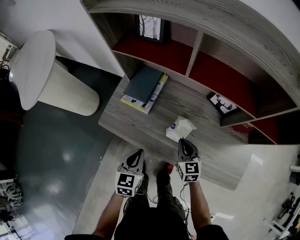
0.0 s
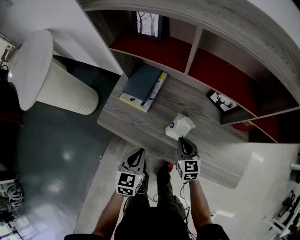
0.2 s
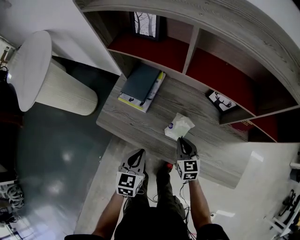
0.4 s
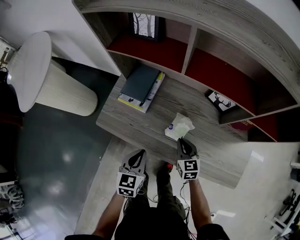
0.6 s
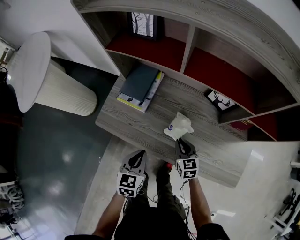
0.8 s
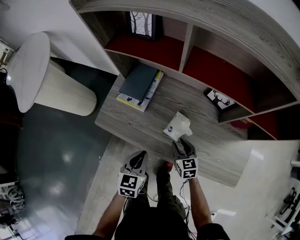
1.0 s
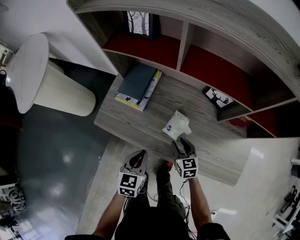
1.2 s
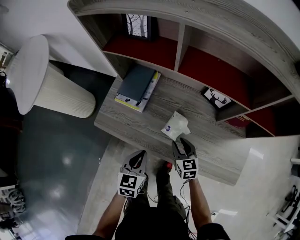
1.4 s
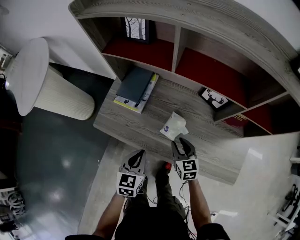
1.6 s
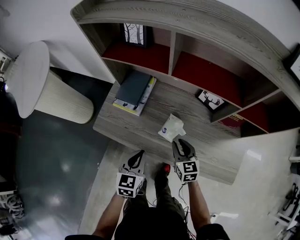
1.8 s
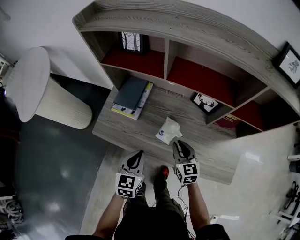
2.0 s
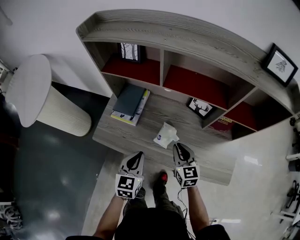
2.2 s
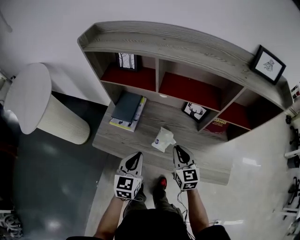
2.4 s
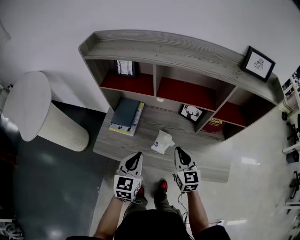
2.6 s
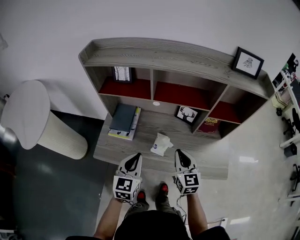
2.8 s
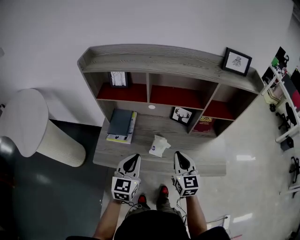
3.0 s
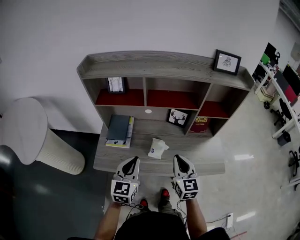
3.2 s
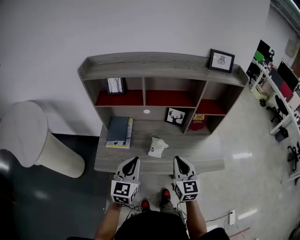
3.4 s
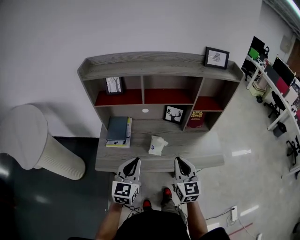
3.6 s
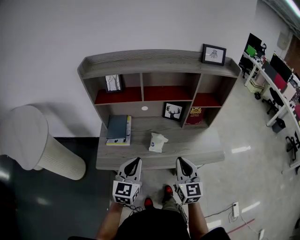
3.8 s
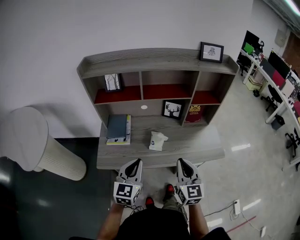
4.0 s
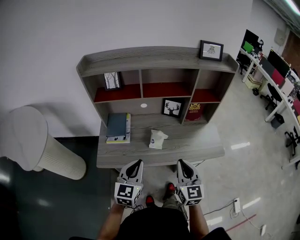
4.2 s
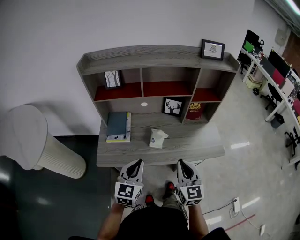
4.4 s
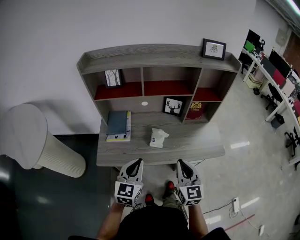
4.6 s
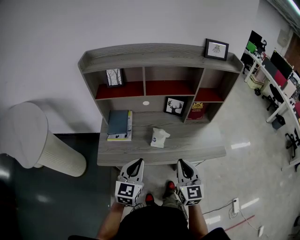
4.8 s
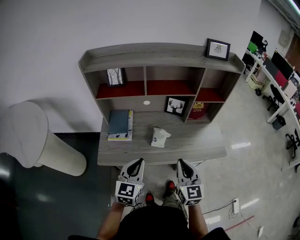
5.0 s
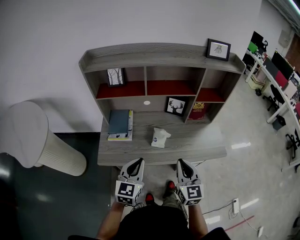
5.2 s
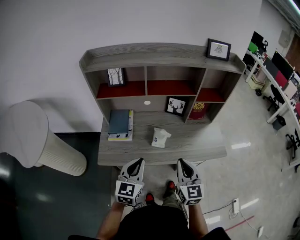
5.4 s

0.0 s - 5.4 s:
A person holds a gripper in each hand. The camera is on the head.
0.0 s - 1.4 s: The right gripper opens up.
1.4 s - 2.8 s: The two grippers go some 20 cm upward. The right gripper rotates approximately 30 degrees, and closes up, while the left gripper changes its angle by about 20 degrees.
2.8 s - 4.0 s: The right gripper moves backward, approximately 15 cm, while the left gripper is displaced backward by approximately 10 cm.
4.0 s - 5.4 s: There are only small adjustments of the grippers.

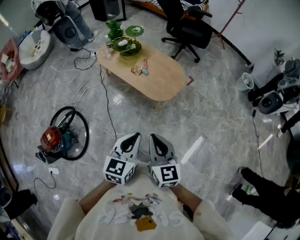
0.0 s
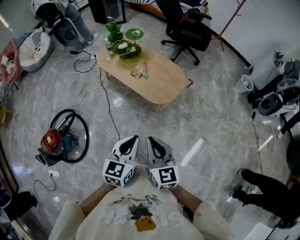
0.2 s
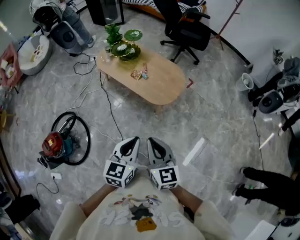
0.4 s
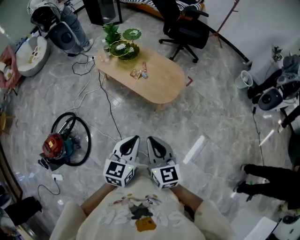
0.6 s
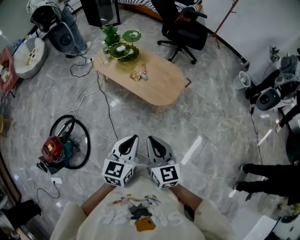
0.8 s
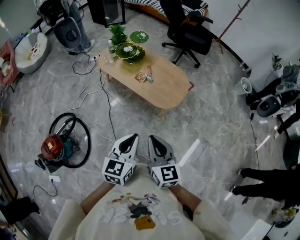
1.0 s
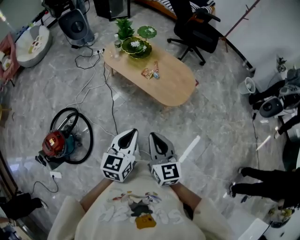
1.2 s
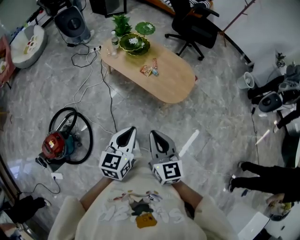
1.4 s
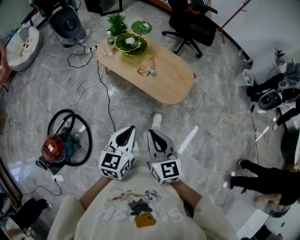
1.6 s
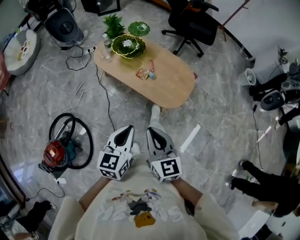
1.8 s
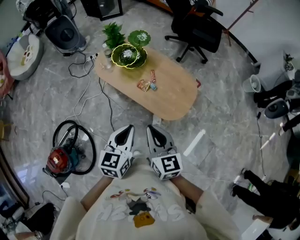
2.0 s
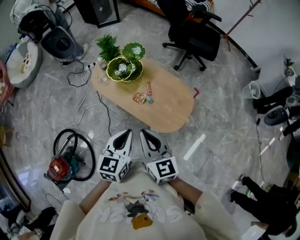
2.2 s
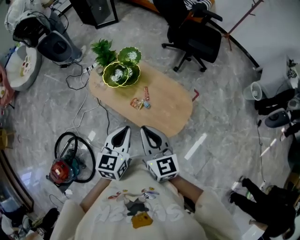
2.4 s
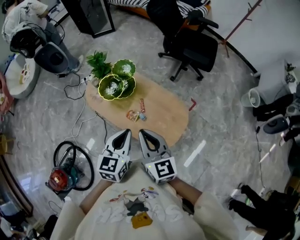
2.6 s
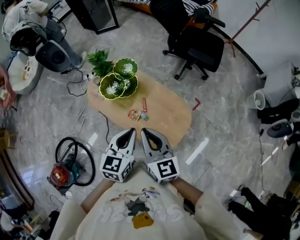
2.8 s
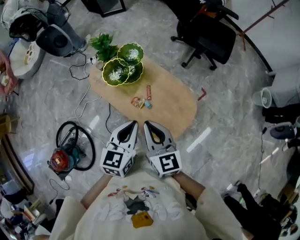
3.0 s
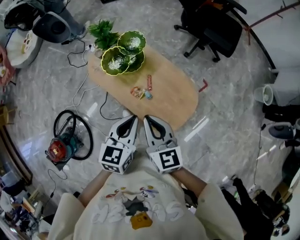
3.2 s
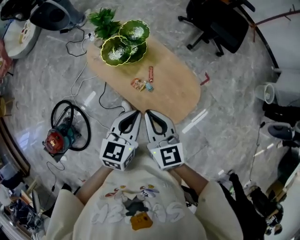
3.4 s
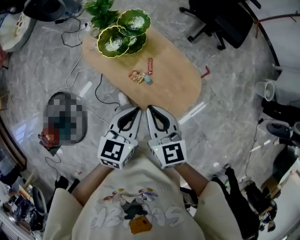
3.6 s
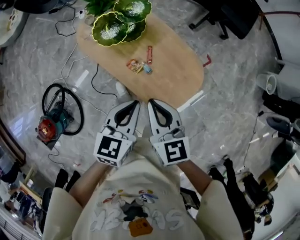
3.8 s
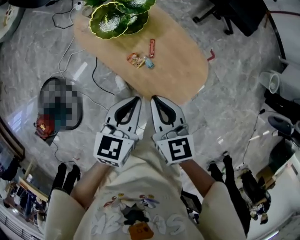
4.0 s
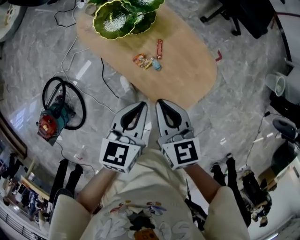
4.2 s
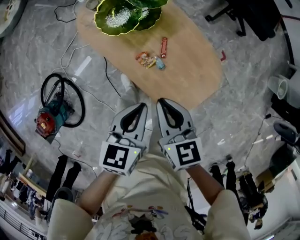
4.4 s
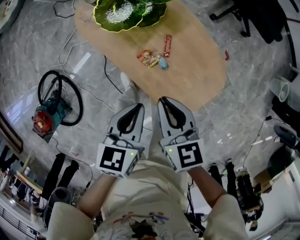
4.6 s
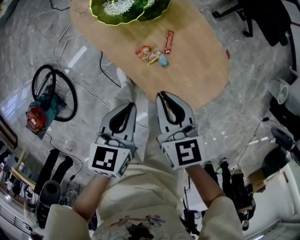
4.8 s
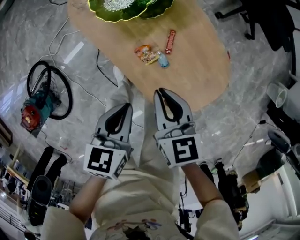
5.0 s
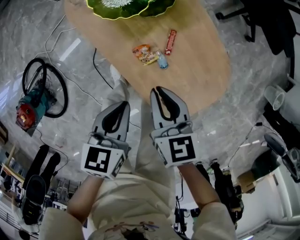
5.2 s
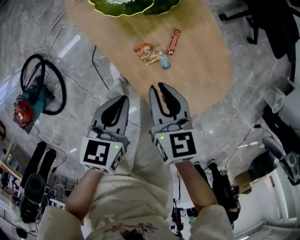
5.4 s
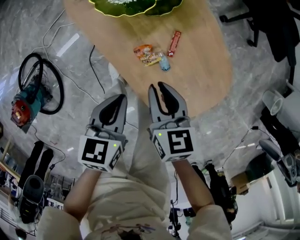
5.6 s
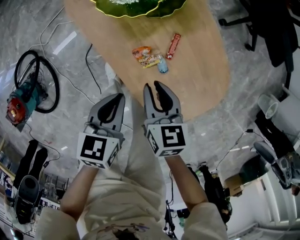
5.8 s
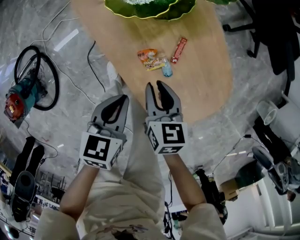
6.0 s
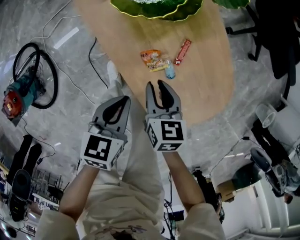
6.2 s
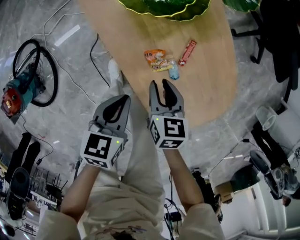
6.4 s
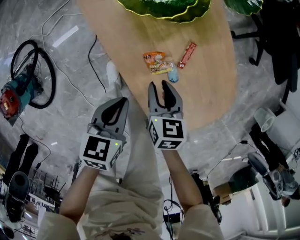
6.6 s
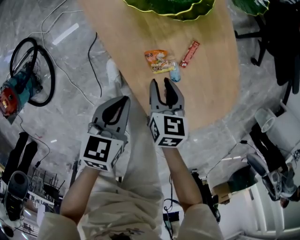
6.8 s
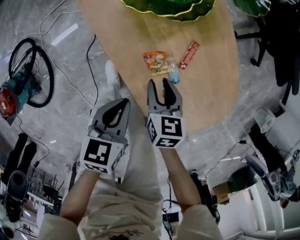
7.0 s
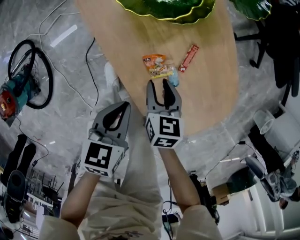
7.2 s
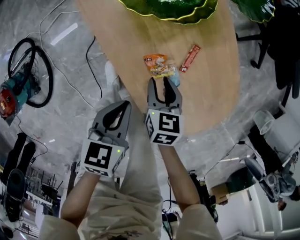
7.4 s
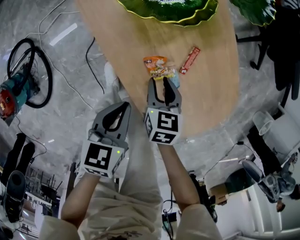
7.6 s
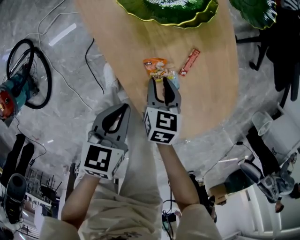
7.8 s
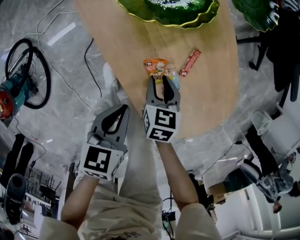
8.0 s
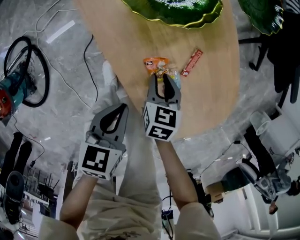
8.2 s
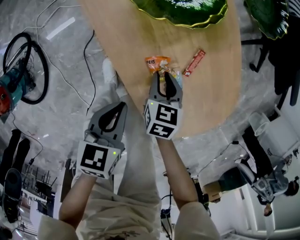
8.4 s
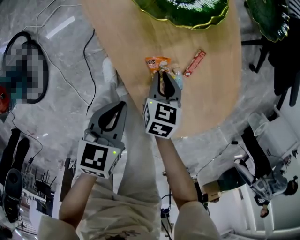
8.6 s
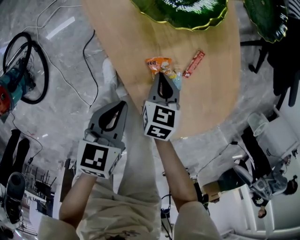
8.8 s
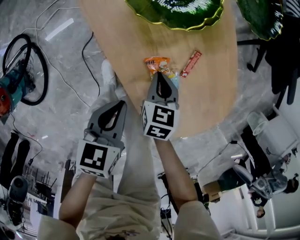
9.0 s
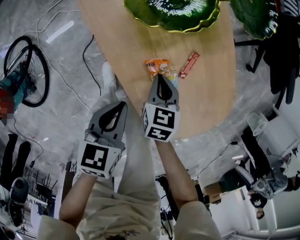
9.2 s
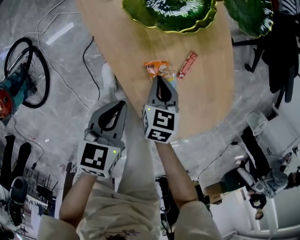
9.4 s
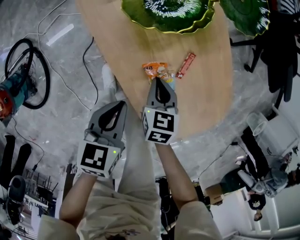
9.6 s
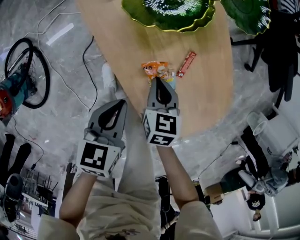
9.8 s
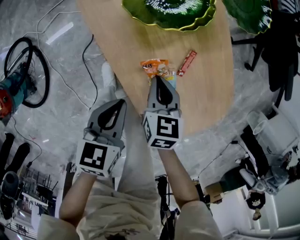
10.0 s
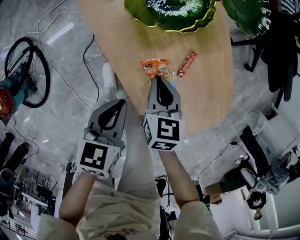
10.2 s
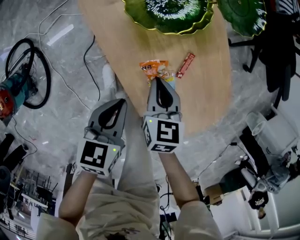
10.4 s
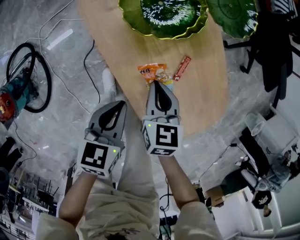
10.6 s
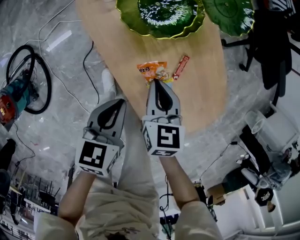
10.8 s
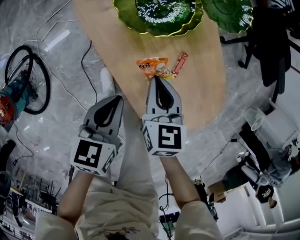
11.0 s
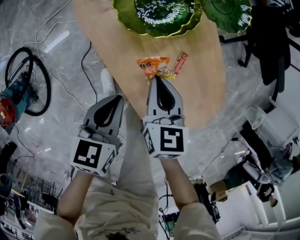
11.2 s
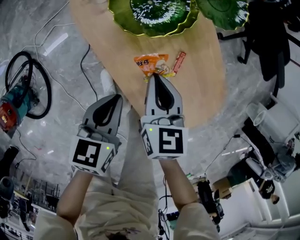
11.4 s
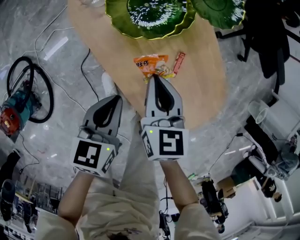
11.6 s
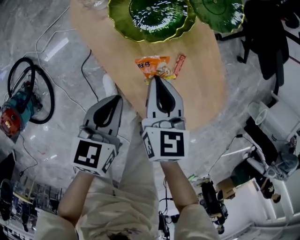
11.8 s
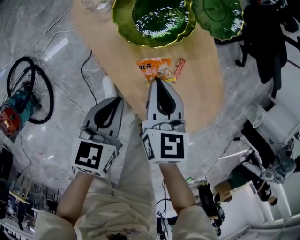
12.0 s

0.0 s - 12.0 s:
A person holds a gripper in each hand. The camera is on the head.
0.0 s - 1.6 s: Both grippers move to the left and forward, about 20 cm.
1.6 s - 3.0 s: The two grippers travel together, forward, roughly 40 cm.
3.0 s - 4.4 s: Both grippers move downward, about 20 cm. The left gripper rotates roughly 20 degrees, while the right gripper changes its angle by approximately 20 degrees.
4.4 s - 6.0 s: The left gripper heads downward and to the left, covering about 20 cm. Meanwhile the right gripper moves downward, roughly 25 cm.
6.0 s - 7.6 s: The left gripper is displaced downward by some 5 cm, while the right gripper goes about 10 cm downward.
7.6 s - 9.0 s: The right gripper closes.
9.0 s - 10.4 s: The right gripper is displaced upward by about 10 cm.
10.4 s - 12.0 s: The right gripper heads upward and forward, covering about 10 cm. Meanwhile the left gripper moves forward and upward, about 5 cm.

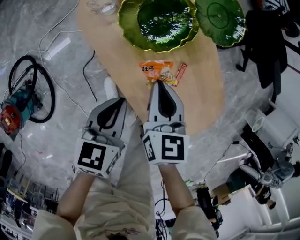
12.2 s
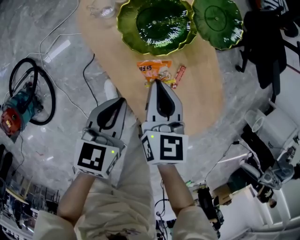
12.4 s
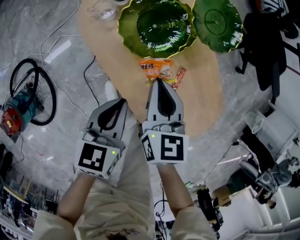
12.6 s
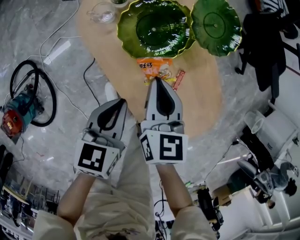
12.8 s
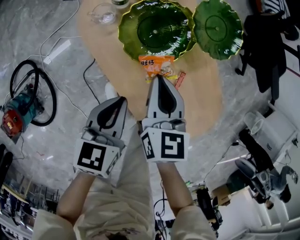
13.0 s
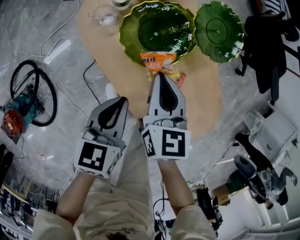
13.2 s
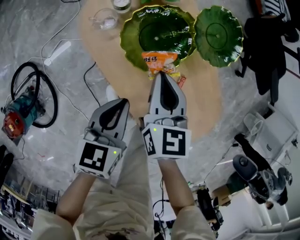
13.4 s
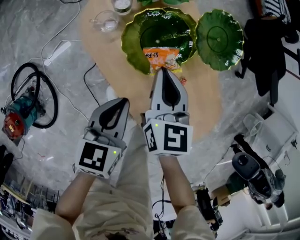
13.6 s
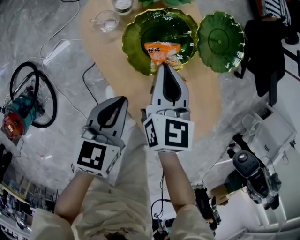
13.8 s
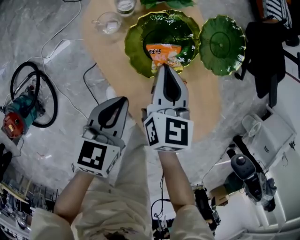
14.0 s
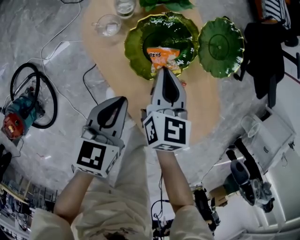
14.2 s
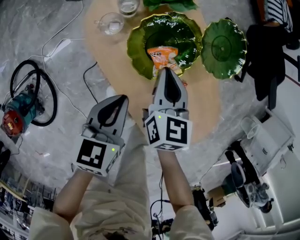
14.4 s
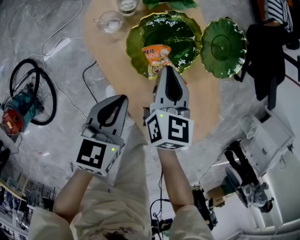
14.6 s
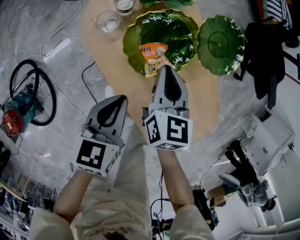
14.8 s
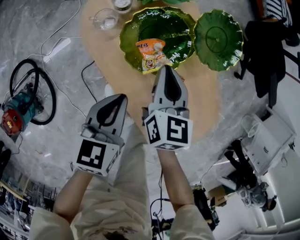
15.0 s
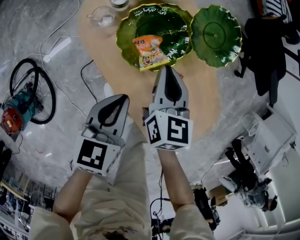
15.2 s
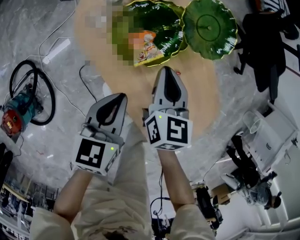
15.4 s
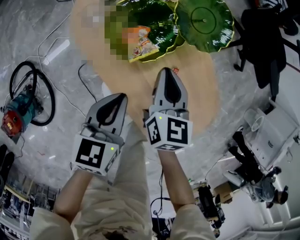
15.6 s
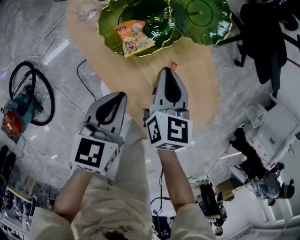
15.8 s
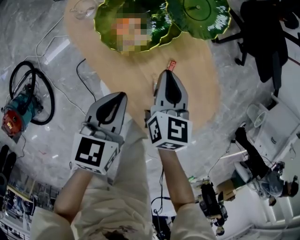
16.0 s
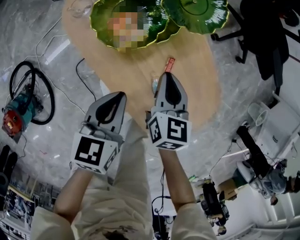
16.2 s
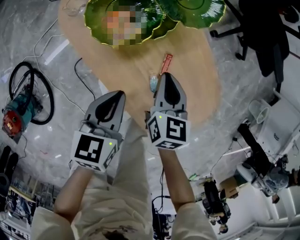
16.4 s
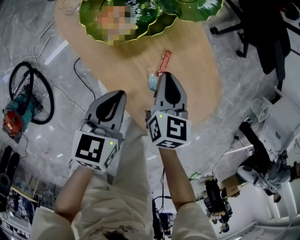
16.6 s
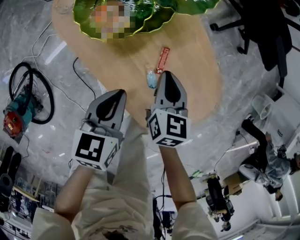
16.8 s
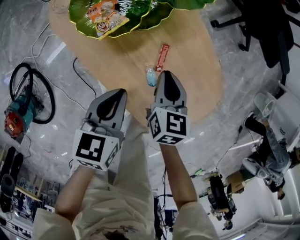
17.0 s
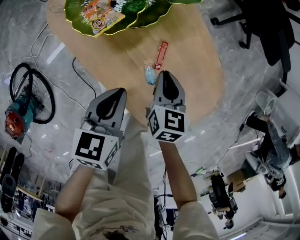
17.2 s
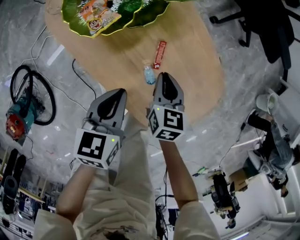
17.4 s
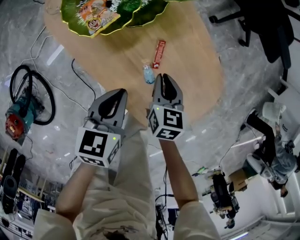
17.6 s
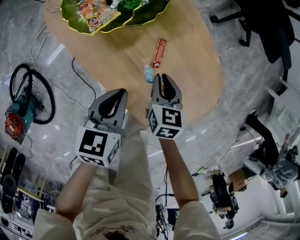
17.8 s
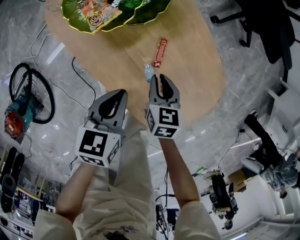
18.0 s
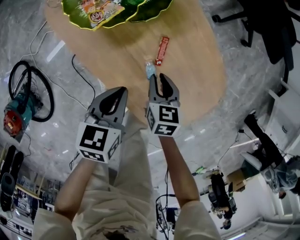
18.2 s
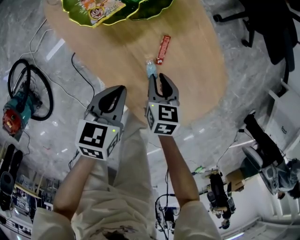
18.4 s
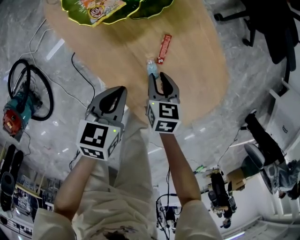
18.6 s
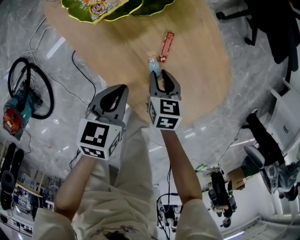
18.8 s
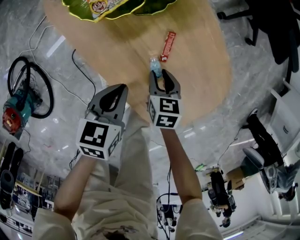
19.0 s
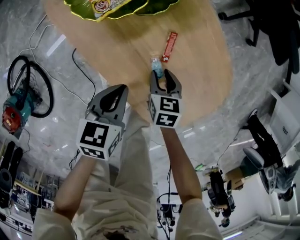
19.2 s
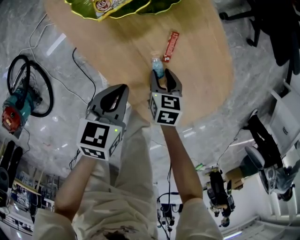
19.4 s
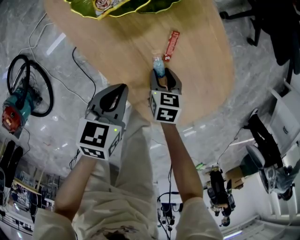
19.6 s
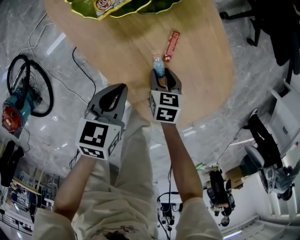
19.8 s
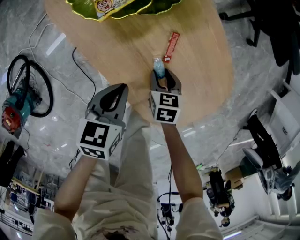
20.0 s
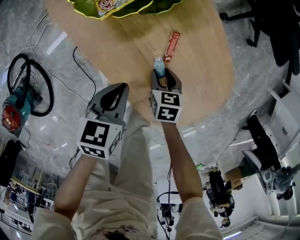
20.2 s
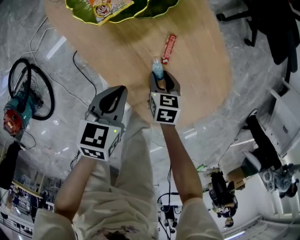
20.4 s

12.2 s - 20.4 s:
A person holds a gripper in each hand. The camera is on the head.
12.2 s - 13.8 s: The right gripper goes approximately 10 cm forward; the left gripper heads forward, covering some 5 cm.
13.8 s - 15.4 s: The right gripper moves to the right, roughly 5 cm.
15.4 s - 17.2 s: The right gripper is displaced to the right, downward and backward by approximately 20 cm. The left gripper travels to the right and downward by about 10 cm.
17.2 s - 18.8 s: The left gripper moves downward, some 5 cm, while the right gripper is displaced downward and backward by some 10 cm, and opens up.
18.8 s - 20.4 s: The grippers move only a little.
